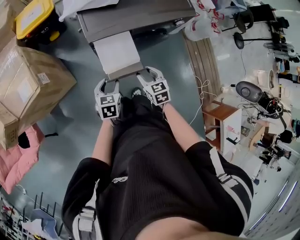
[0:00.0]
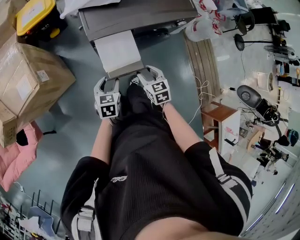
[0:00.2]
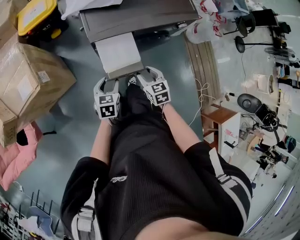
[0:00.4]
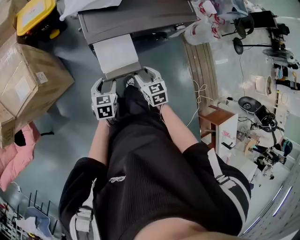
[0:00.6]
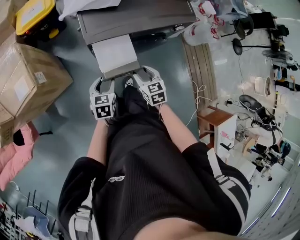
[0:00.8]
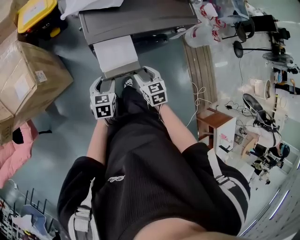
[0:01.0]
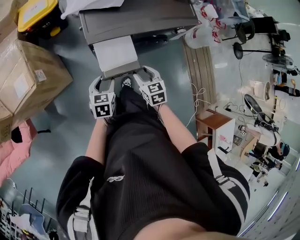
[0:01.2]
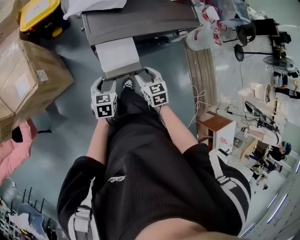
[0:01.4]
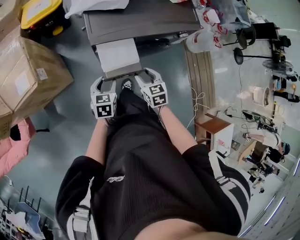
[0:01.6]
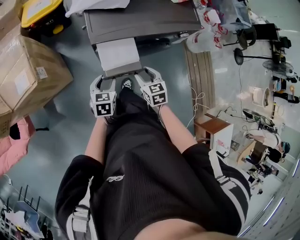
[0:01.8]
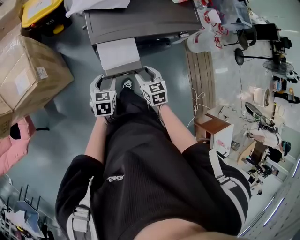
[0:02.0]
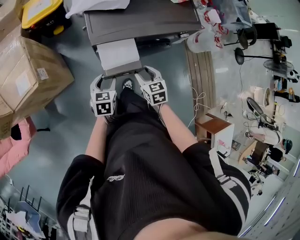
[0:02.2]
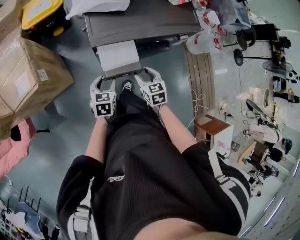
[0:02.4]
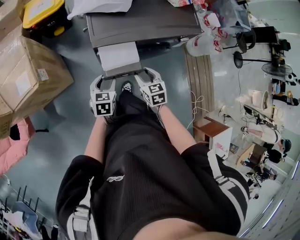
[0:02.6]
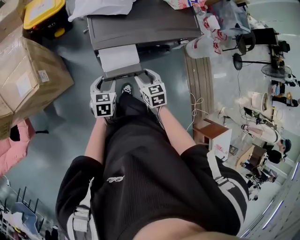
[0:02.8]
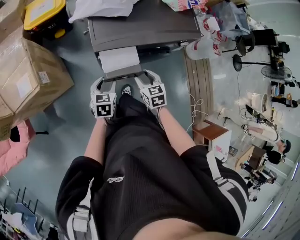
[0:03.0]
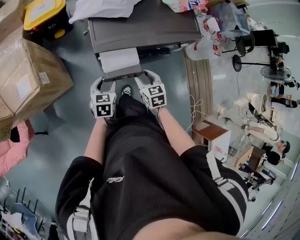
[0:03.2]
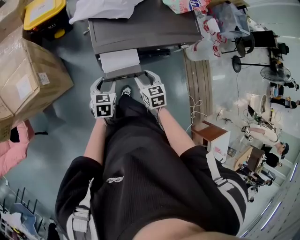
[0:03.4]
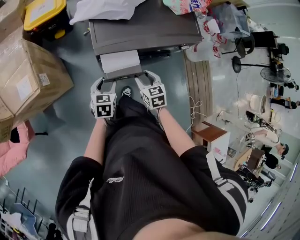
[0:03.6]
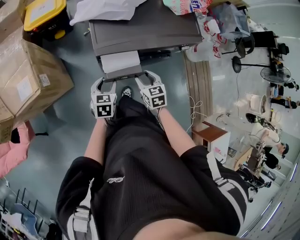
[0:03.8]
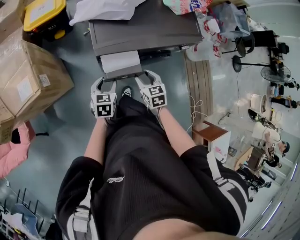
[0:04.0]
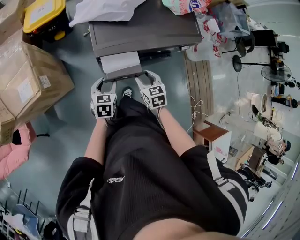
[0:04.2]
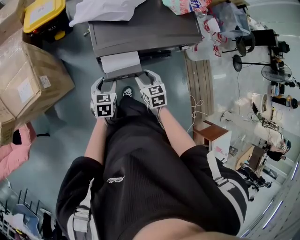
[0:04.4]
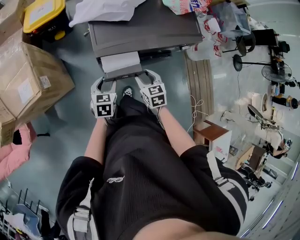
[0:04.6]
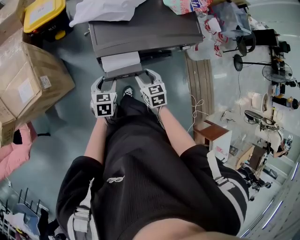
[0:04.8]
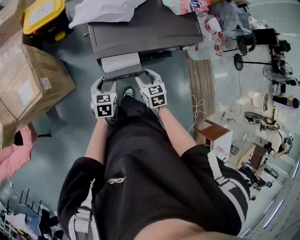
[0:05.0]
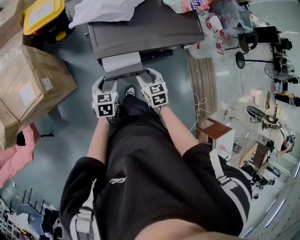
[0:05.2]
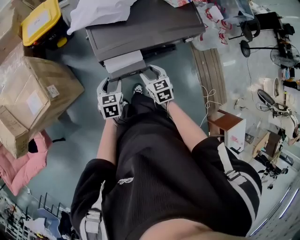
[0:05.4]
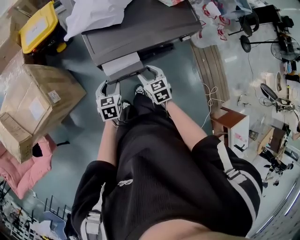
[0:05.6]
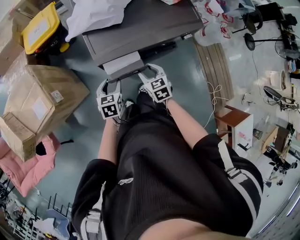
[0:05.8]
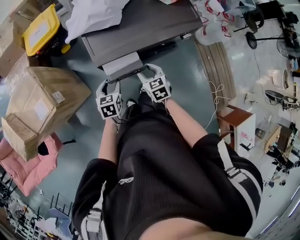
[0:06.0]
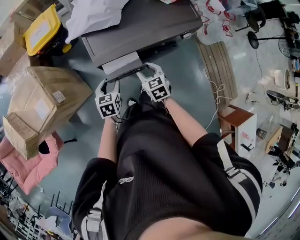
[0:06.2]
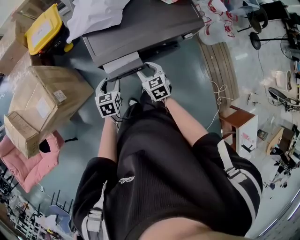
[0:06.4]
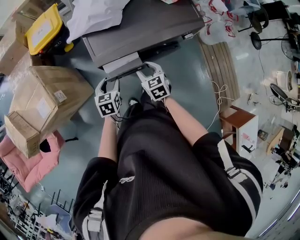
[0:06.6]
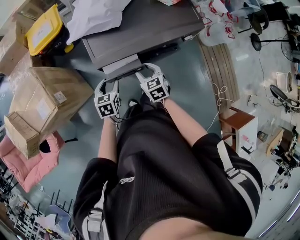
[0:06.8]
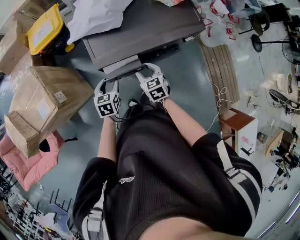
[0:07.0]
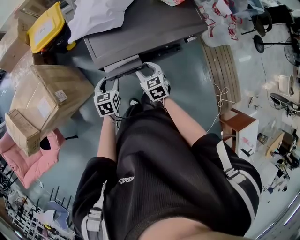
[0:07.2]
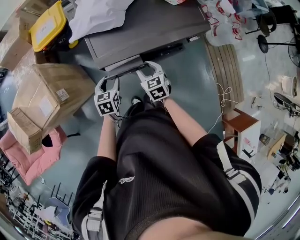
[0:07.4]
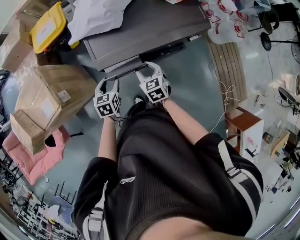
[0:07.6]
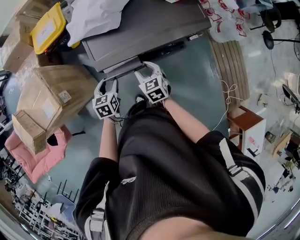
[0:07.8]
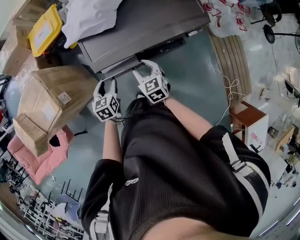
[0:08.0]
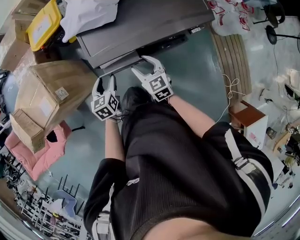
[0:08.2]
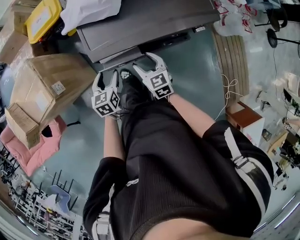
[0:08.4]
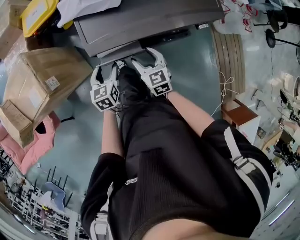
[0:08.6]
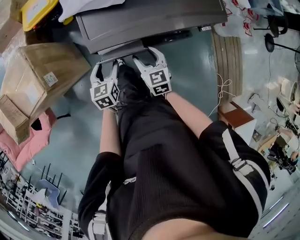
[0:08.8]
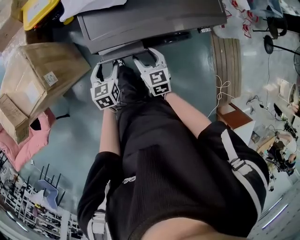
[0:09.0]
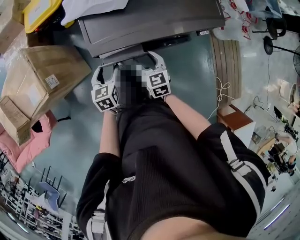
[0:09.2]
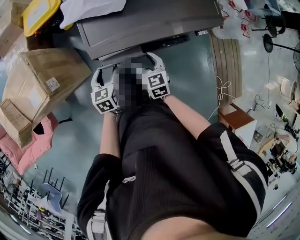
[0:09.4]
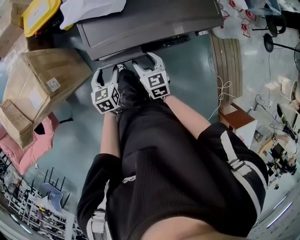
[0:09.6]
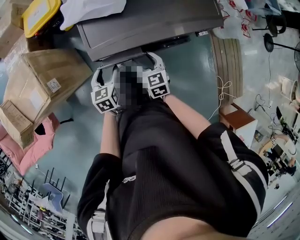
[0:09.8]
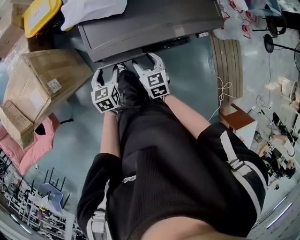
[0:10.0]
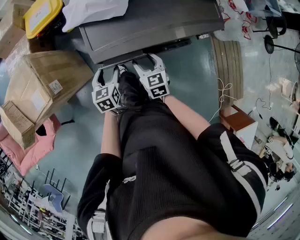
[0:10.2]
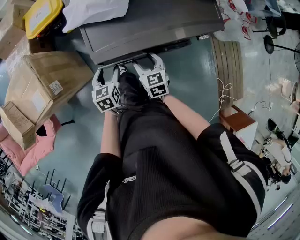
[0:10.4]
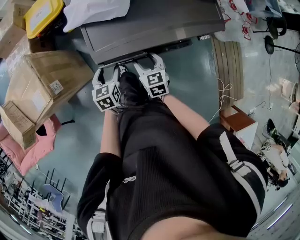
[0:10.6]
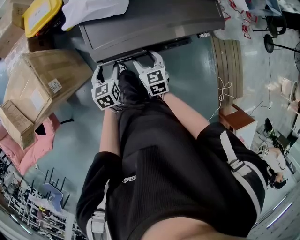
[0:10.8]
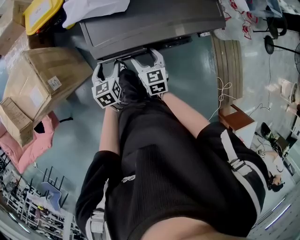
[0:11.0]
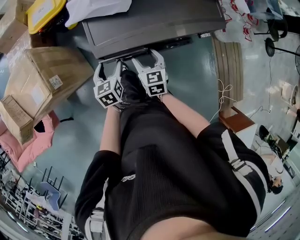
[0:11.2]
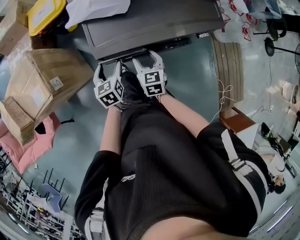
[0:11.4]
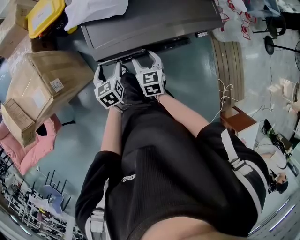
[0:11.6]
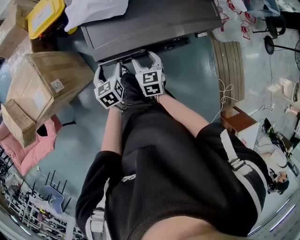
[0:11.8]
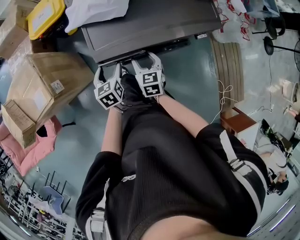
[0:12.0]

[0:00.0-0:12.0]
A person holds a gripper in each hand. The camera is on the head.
0:00.0 to 0:01.6: There are only small adjustments of the grippers.
0:01.6 to 0:04.4: The grippers stay close to where they were, moving slightly.
0:04.4 to 0:07.6: There are only small adjustments of the grippers.
0:07.6 to 0:12.0: There are only small adjustments of the grippers.

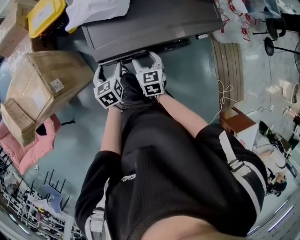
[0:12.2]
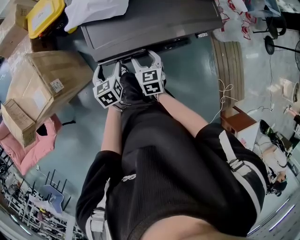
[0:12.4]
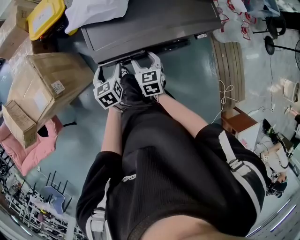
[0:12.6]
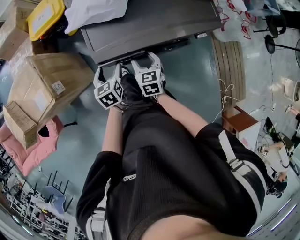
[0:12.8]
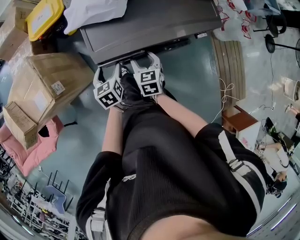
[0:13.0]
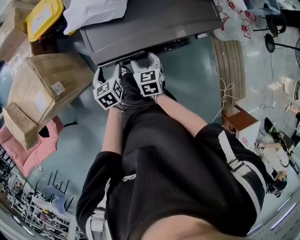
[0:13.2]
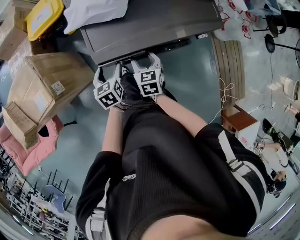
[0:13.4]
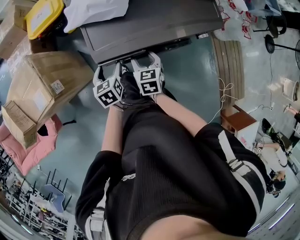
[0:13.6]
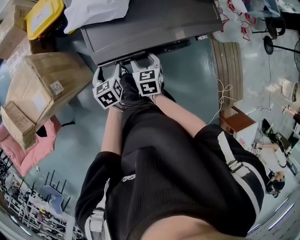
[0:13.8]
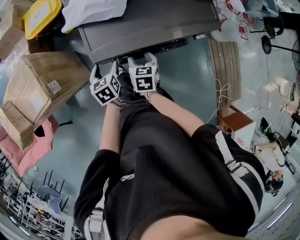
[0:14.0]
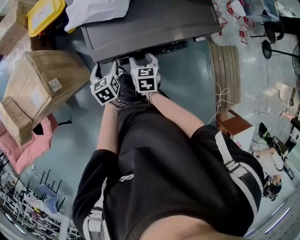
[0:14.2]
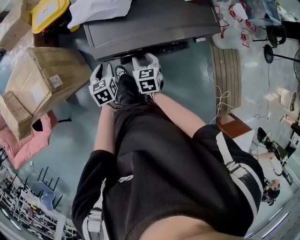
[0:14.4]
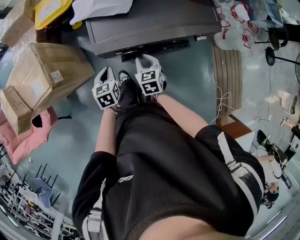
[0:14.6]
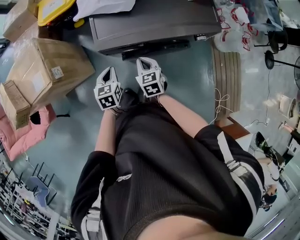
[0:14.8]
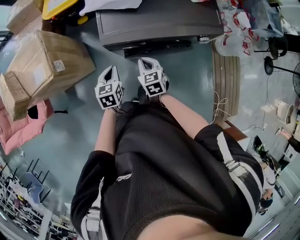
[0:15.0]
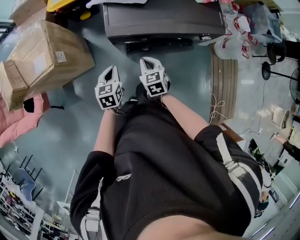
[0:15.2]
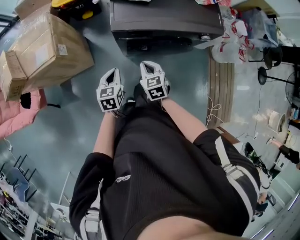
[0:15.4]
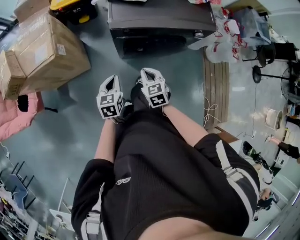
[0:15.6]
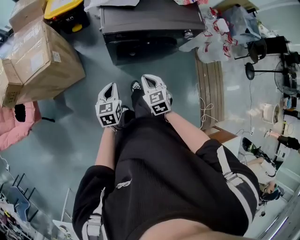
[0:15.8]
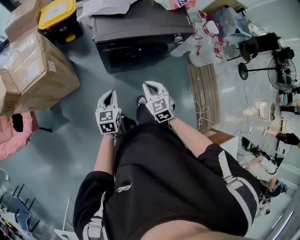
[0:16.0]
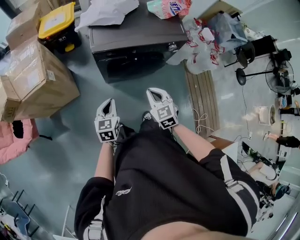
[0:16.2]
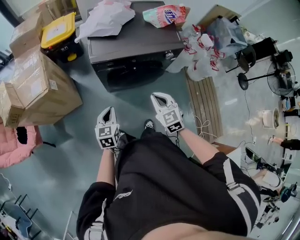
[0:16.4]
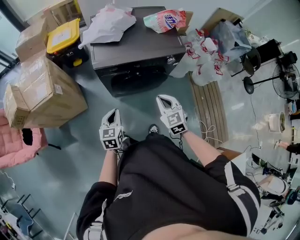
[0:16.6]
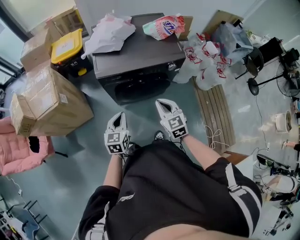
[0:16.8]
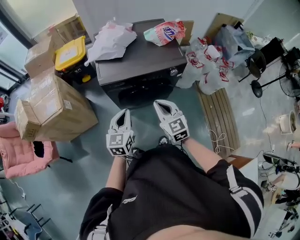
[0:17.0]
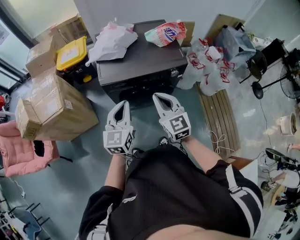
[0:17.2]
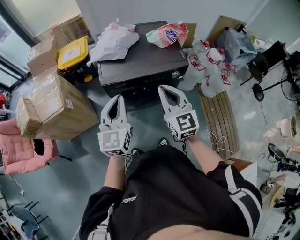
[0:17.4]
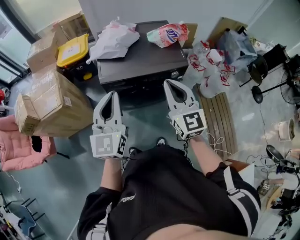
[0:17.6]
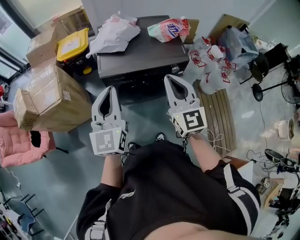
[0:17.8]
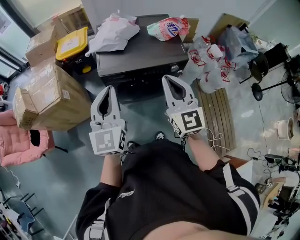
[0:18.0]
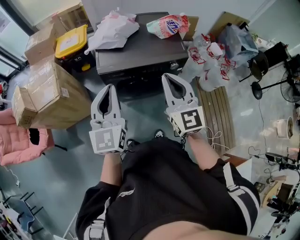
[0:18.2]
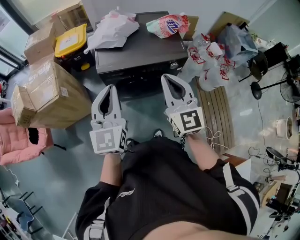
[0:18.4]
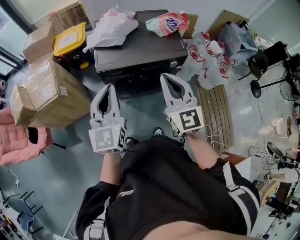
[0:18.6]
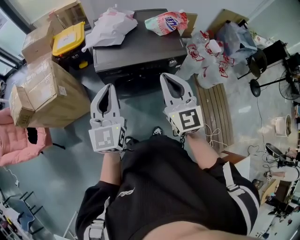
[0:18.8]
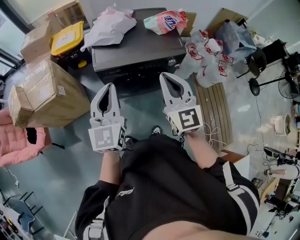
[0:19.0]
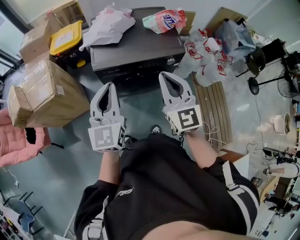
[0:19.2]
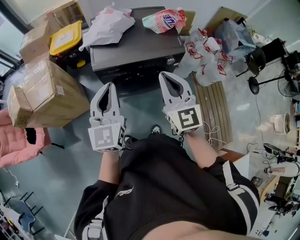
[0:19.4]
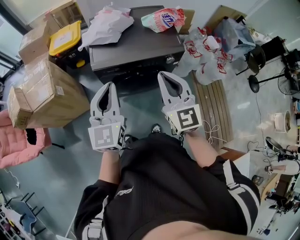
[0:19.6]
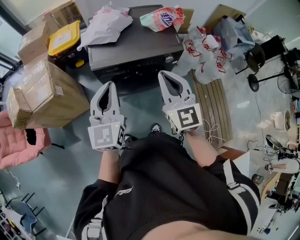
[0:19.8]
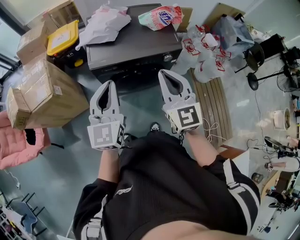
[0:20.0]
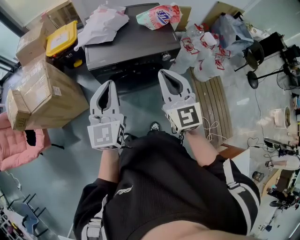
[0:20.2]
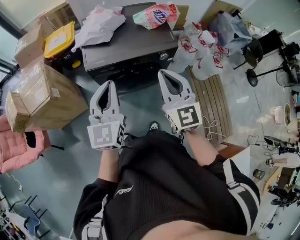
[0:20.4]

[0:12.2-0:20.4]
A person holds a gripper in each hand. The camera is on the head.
0:12.2 to 0:13.8: There are only small adjustments of the grippers.
0:13.8 to 0:15.4: The two grippers go roughly 15 cm backward. The right gripper turns by roughly 20 degrees, and closes its fingers. Meanwhile the left gripper closes its fingers.
0:15.4 to 0:17.2: The grippers both shift upward and to the right by some 30 cm. The right gripper angles its fingers upward, by some 30 degrees, while the left gripper rotates about 30 degrees.
0:17.2 to 0:18.8: The grippers both shift upward by roughly 10 cm.
0:18.8 to 0:20.4: The grippers move only a little.

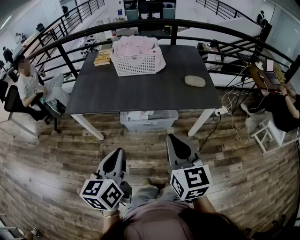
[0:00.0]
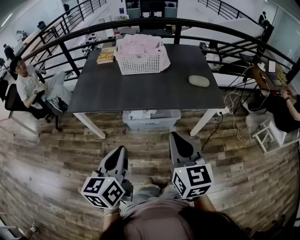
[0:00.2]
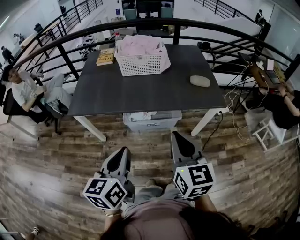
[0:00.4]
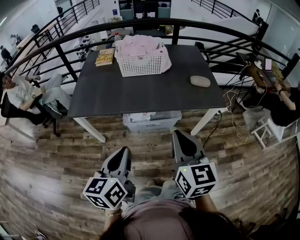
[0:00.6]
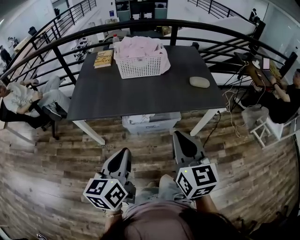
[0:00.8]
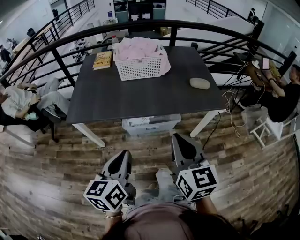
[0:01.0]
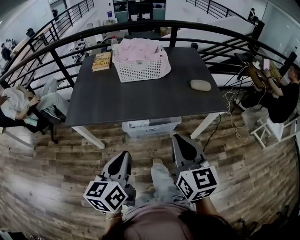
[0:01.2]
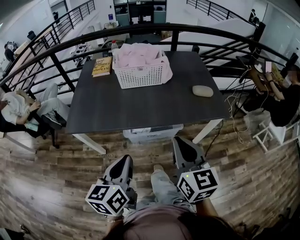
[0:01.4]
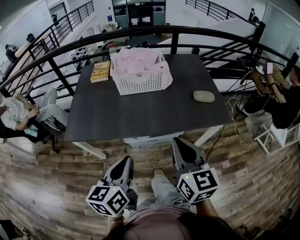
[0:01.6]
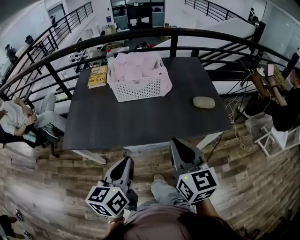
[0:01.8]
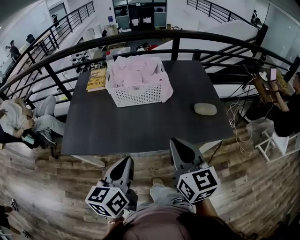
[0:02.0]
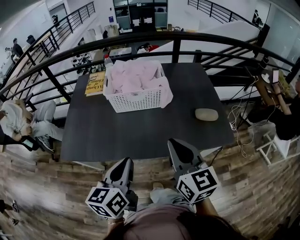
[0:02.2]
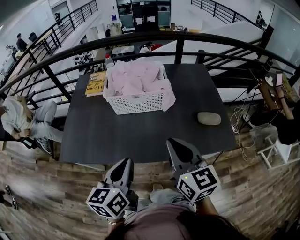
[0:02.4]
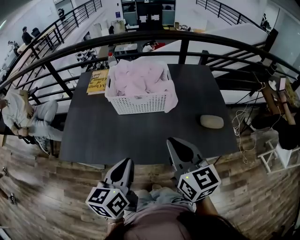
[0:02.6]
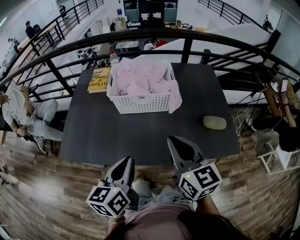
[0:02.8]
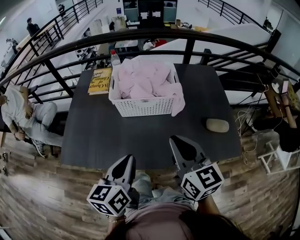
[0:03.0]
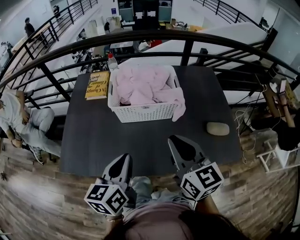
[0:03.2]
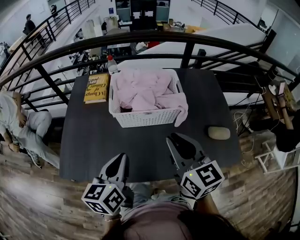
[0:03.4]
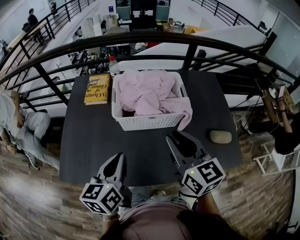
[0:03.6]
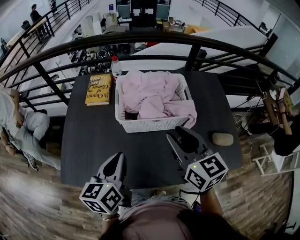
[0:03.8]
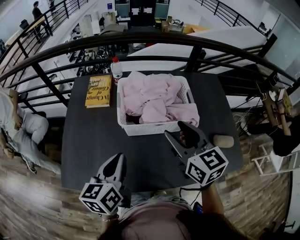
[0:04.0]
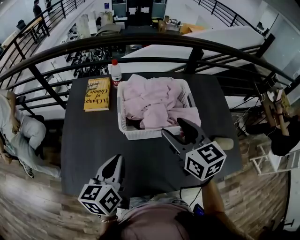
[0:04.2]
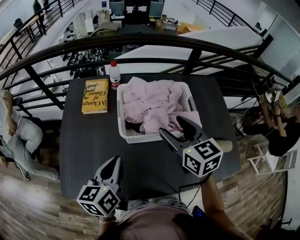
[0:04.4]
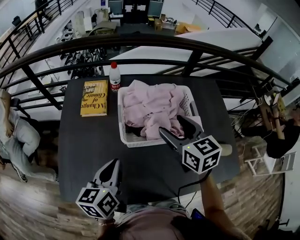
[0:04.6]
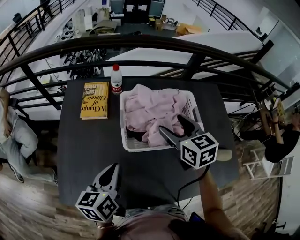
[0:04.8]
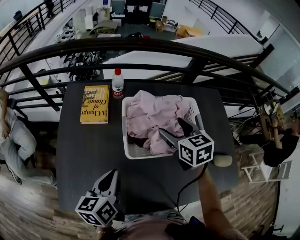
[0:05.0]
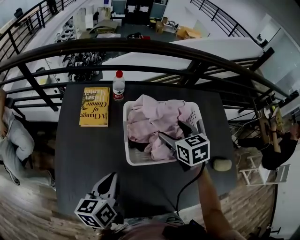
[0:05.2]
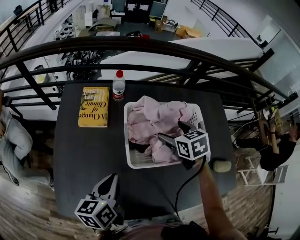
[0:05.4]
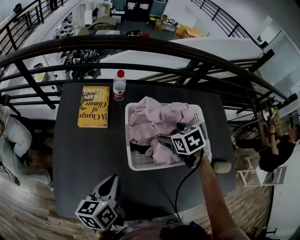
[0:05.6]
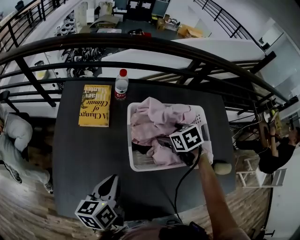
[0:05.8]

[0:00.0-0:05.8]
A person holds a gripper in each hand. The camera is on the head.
0:00.0 to 0:01.4: The grippers both shift forward and to the left by roughly 10 cm.
0:01.4 to 0:02.8: Both grippers move forward, some 25 cm.
0:02.8 to 0:04.4: The left gripper travels forward and to the left by about 25 cm. Meanwhile the right gripper shifts roughly 25 cm forward, and opens its fingers.
0:04.4 to 0:05.8: The right gripper goes about 25 cm downward and forward, and tilts its fingers some 40 degrees downward, while the left gripper moves downward and forward, approximately 10 cm.
